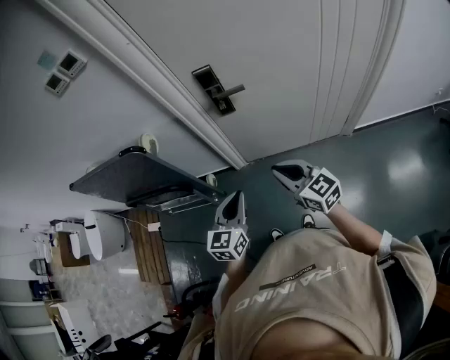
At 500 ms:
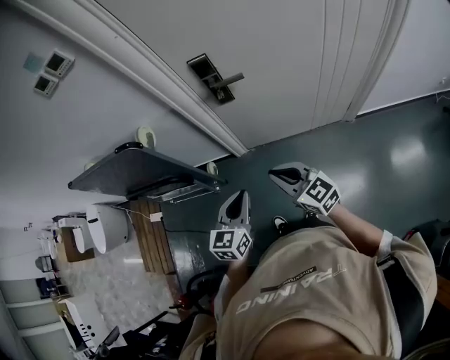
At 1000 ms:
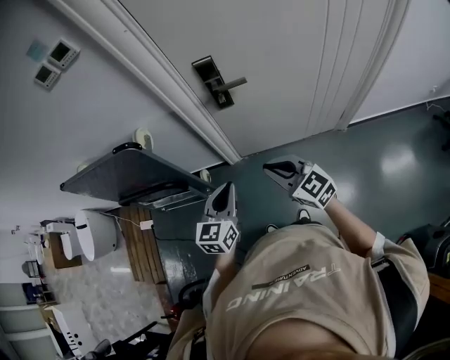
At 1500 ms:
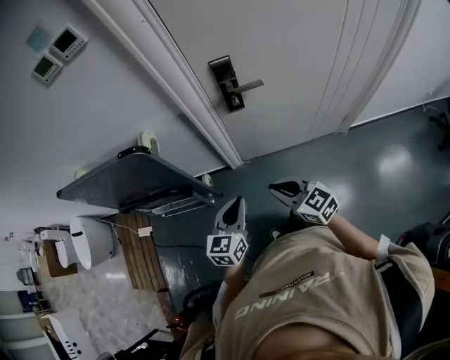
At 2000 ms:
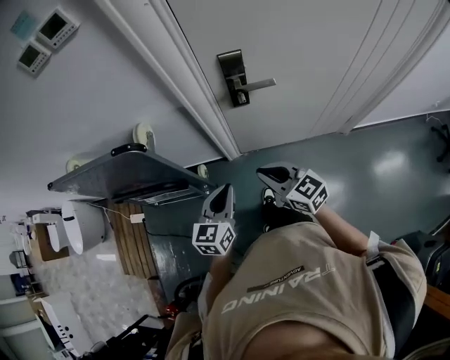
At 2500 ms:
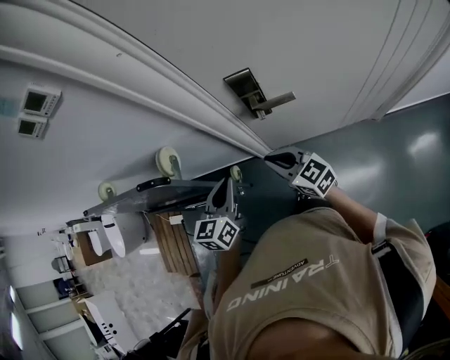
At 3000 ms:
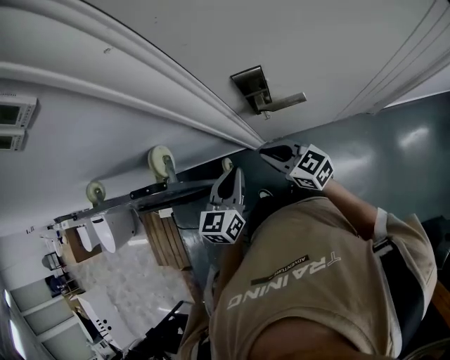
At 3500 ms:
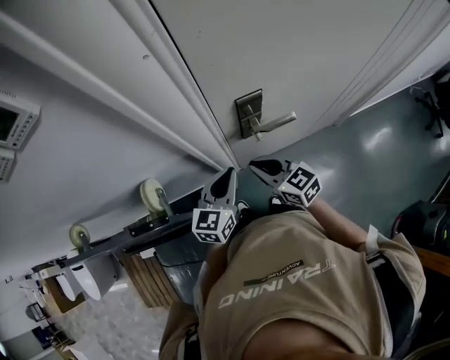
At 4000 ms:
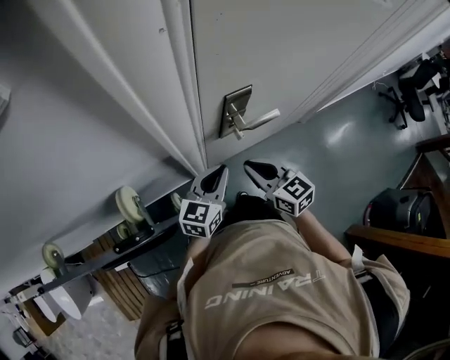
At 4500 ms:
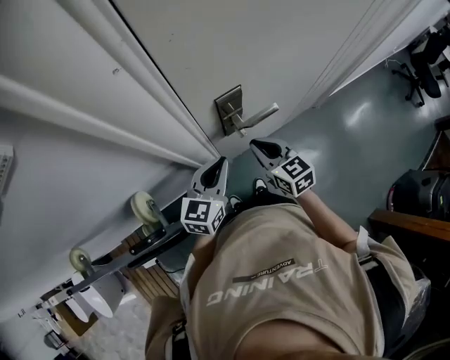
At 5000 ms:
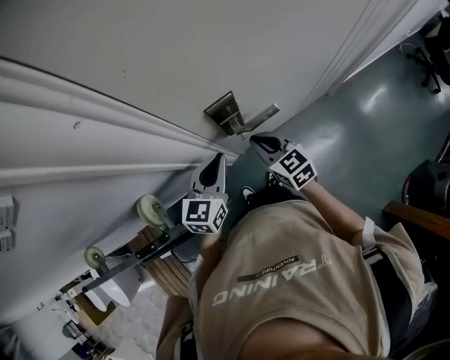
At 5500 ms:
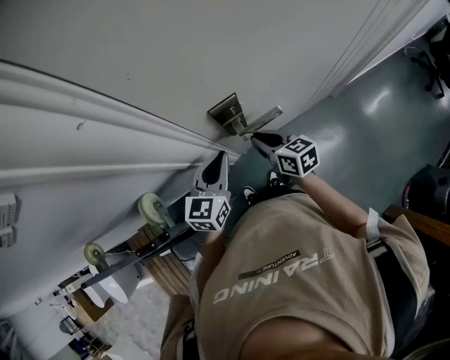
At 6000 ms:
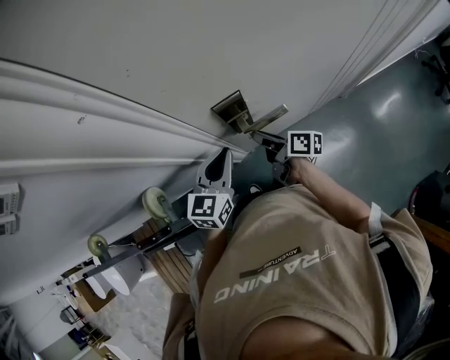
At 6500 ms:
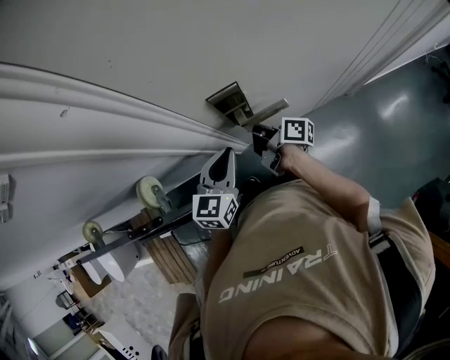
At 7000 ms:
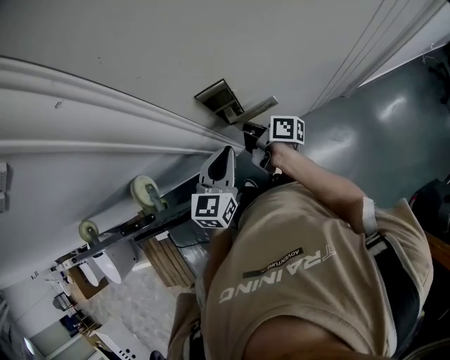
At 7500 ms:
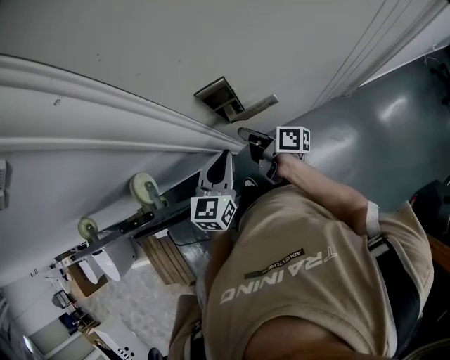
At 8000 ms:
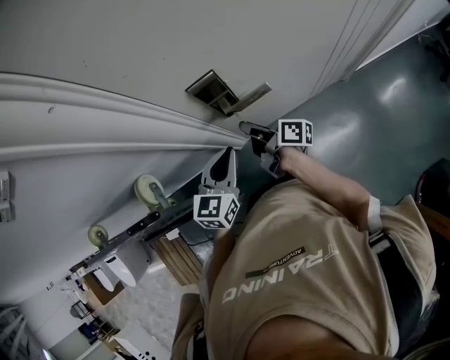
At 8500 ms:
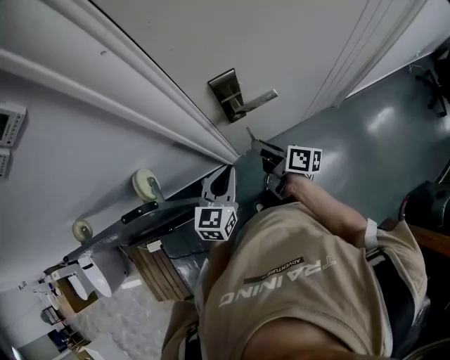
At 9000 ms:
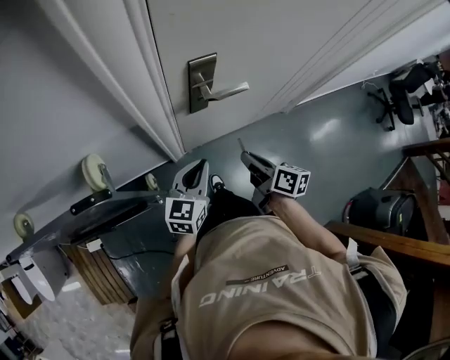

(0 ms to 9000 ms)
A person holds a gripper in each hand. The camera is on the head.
0 ms - 2000 ms: The right gripper is displaced to the left and forward by about 15 cm, while the left gripper goes roughly 15 cm forward and to the left.
2000 ms - 4500 ms: The left gripper goes up and down, some 5 cm each way, reversing 2 times, and turns by roughly 30 degrees, while the right gripper shifts by some 25 cm, and turns by approximately 40 degrees.
4500 ms - 7000 ms: The right gripper goes some 10 cm forward and downward, and rotates around the line of its fingers by some 70 degrees, clockwise from behind.
7000 ms - 9000 ms: The left gripper shifts about 10 cm backward. Meanwhile the right gripper travels backward by roughly 20 cm, and changes its angle by approximately 30 degrees.

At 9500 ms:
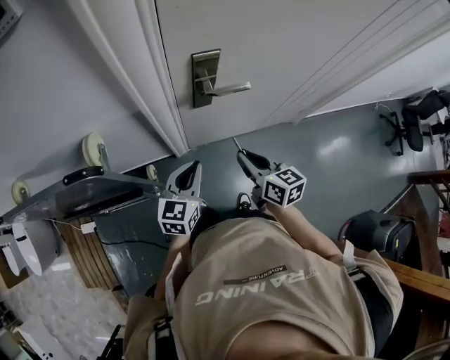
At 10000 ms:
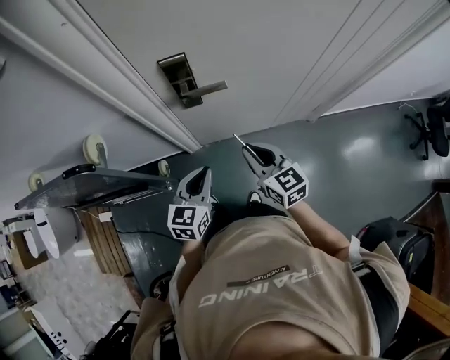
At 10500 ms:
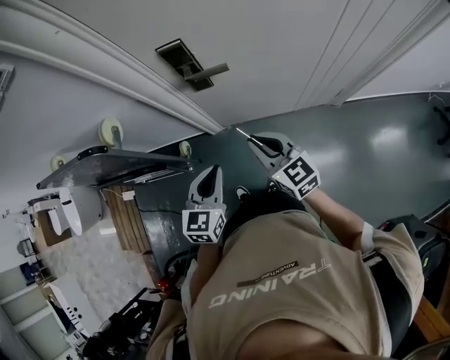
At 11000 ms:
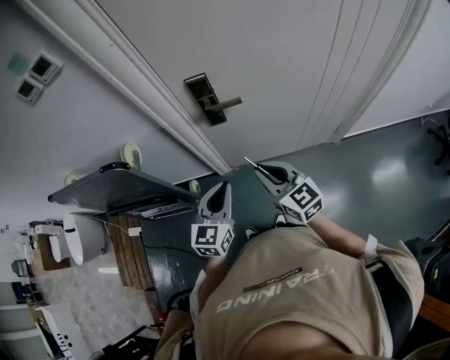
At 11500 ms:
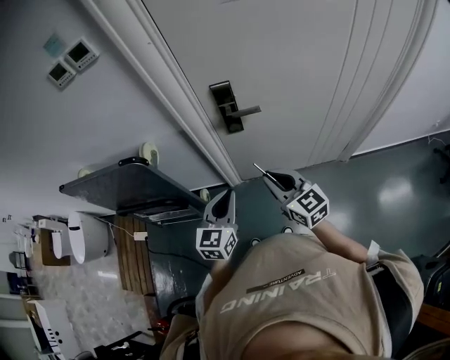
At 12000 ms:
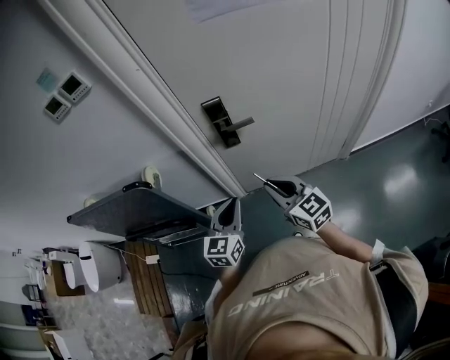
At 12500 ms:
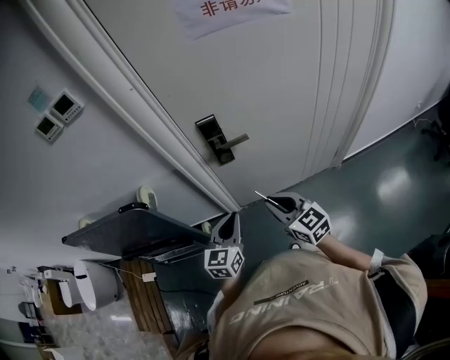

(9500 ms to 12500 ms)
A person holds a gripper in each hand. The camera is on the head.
9500 ms - 11000 ms: The right gripper heads backward, upward and to the right, covering about 15 cm, and rotates about 30 degrees. Meanwhile the left gripper goes some 15 cm backward, to the right and upward.
11000 ms - 12500 ms: The grippers move only a little.

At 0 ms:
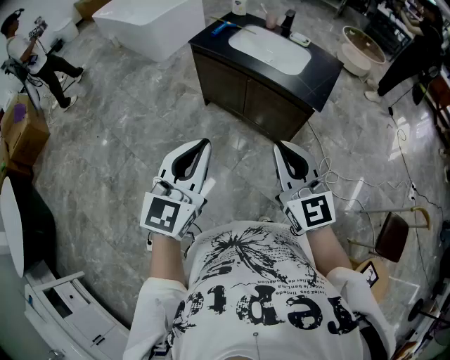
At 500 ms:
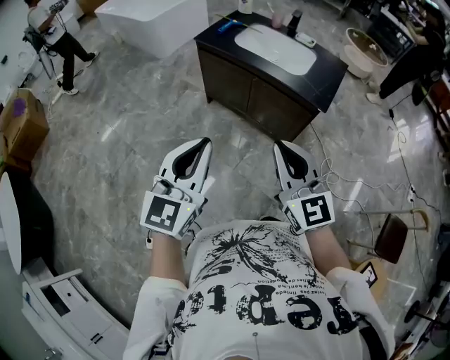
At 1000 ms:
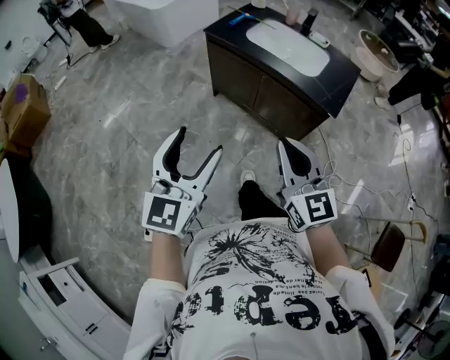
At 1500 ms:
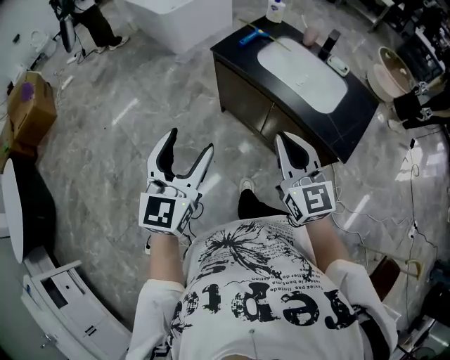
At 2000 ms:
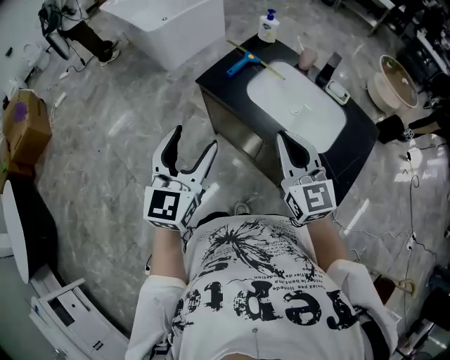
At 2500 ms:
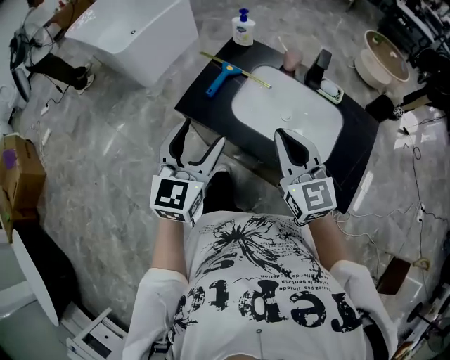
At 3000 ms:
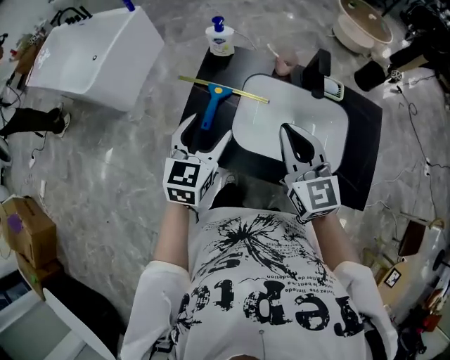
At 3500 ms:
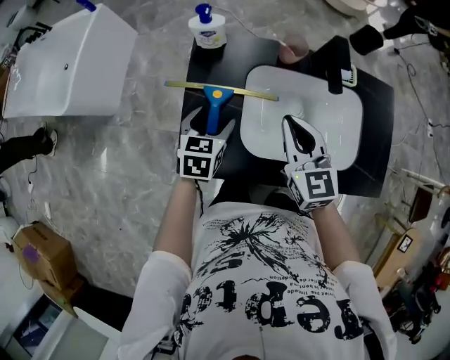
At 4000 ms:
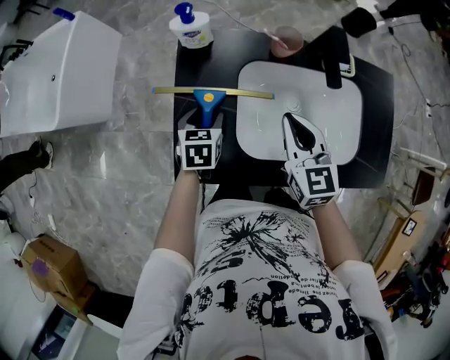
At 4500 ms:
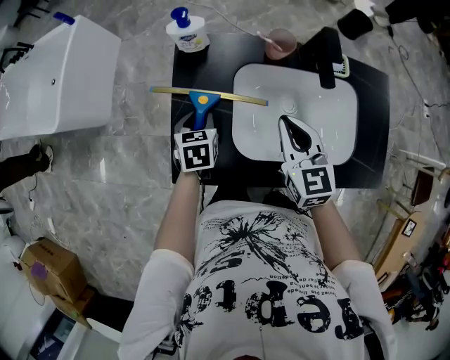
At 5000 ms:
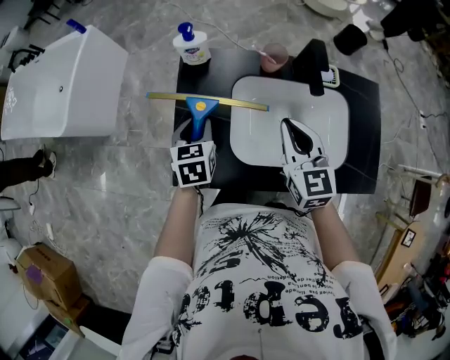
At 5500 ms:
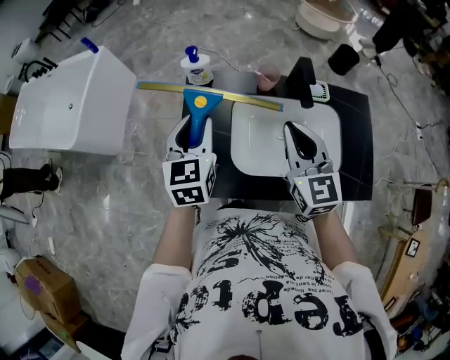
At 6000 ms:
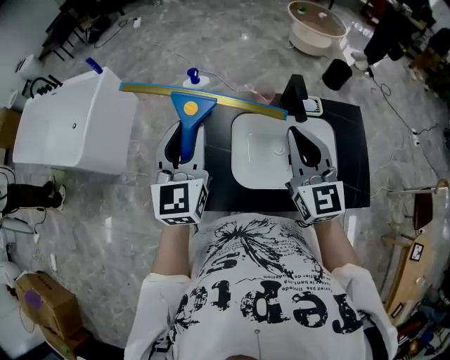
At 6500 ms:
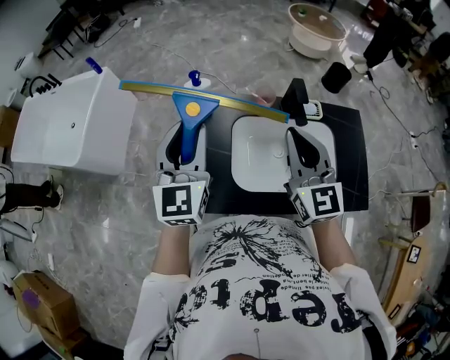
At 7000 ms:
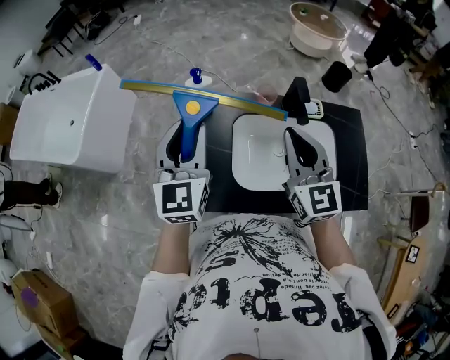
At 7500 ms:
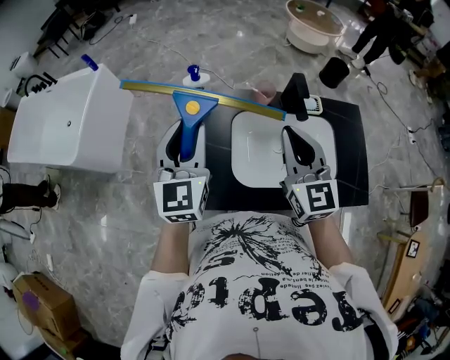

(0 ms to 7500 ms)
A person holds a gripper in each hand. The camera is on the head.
0 ms - 2000 ms: The two grippers travel together, forward, roughly 50 cm. The left gripper opens its fingers.
2000 ms - 4000 ms: The two grippers travel together, roughly 50 cm. The right gripper changes its angle by about 50 degrees, while the left gripper angles its fingers downward, by about 50 degrees.
4000 ms - 5500 ms: The left gripper moves upward, roughly 25 cm, and angles its fingers upward, by some 30 degrees, while the right gripper goes approximately 15 cm upward.
5500 ms - 7500 ms: The right gripper shifts by roughly 5 cm, while the left gripper is displaced upward by approximately 10 cm.

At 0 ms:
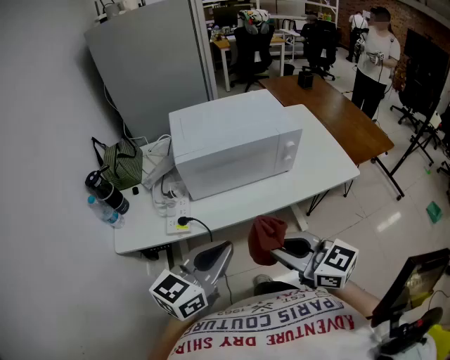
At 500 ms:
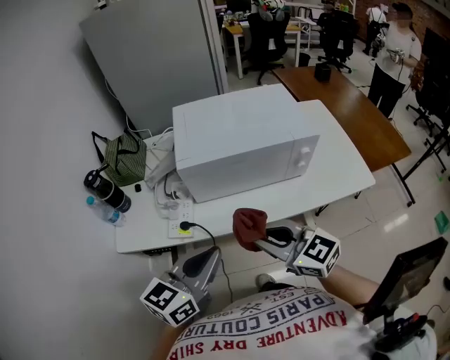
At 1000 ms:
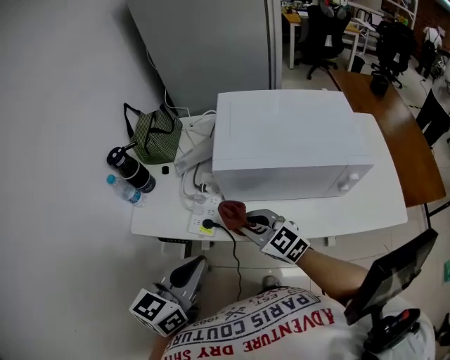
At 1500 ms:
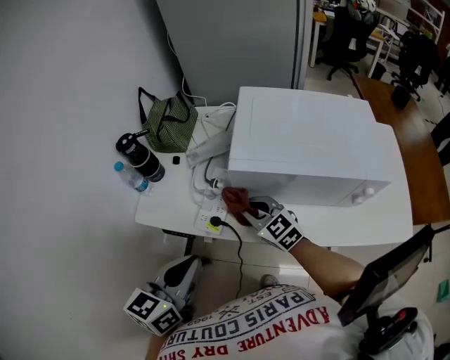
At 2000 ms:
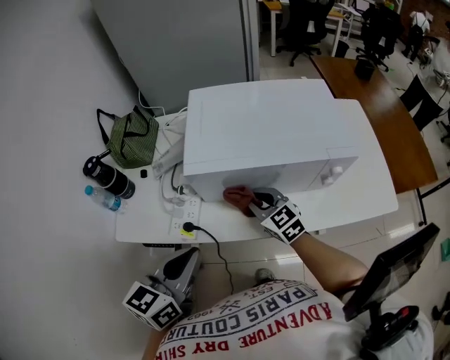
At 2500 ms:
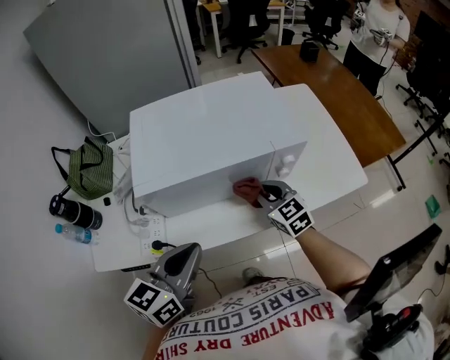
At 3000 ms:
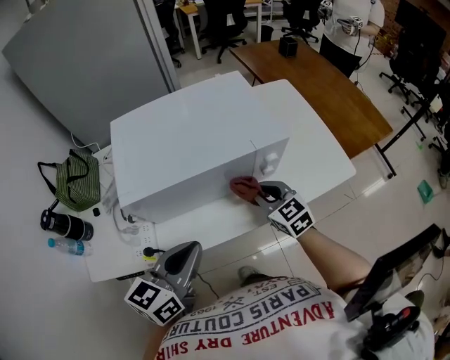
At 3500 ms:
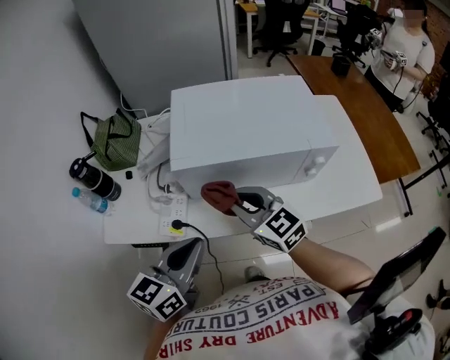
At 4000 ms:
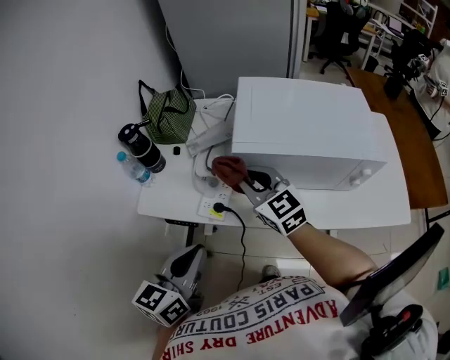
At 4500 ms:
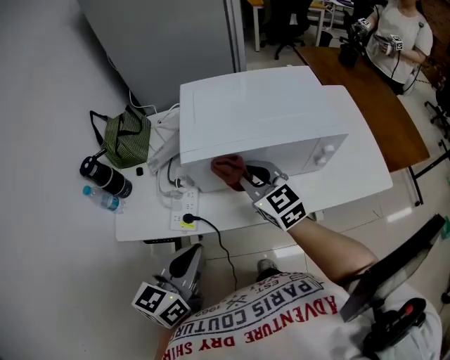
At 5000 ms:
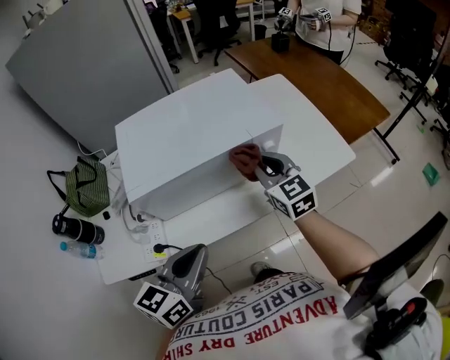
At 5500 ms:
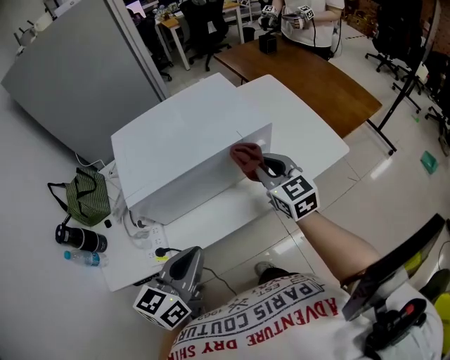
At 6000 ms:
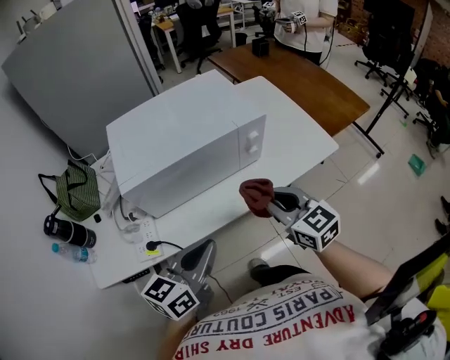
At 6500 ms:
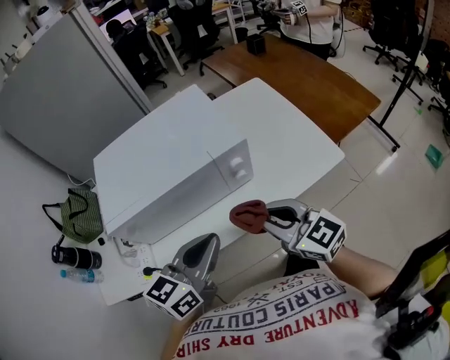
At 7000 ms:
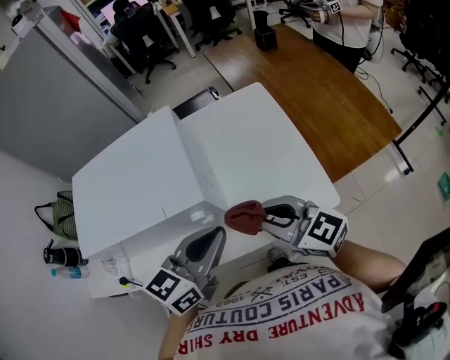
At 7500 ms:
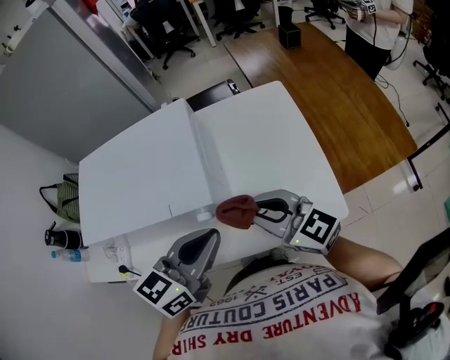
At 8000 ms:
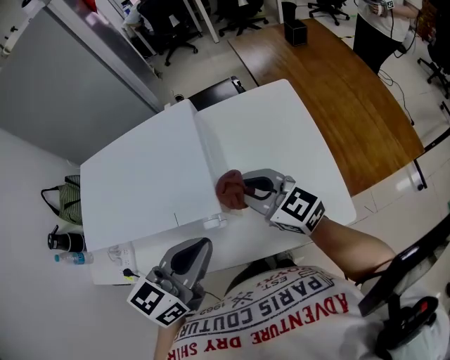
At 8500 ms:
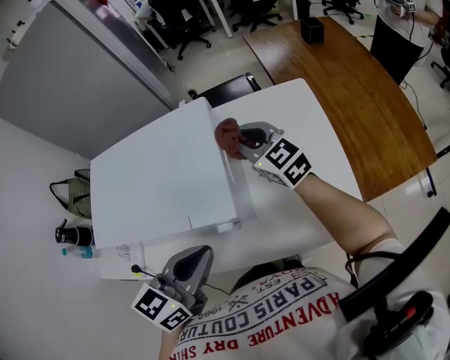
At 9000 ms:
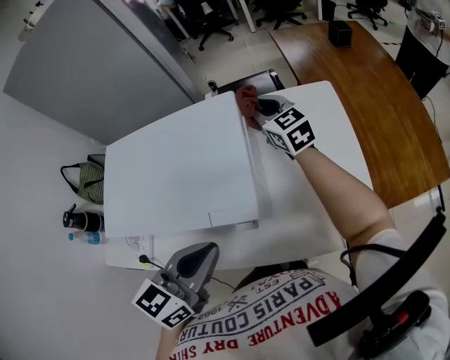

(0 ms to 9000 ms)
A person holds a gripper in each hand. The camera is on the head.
0 ms - 2000 ms: The right gripper ends up approximately 35 cm from where it was, and turns by some 20 degrees, while the left gripper changes place by approximately 15 cm, and turns by roughly 30 degrees.
2000 ms - 4500 ms: The right gripper shifts approximately 10 cm upward.
4500 ms - 7000 ms: The right gripper is displaced to the right by roughly 40 cm. The left gripper travels to the right and forward by roughly 50 cm, and swivels approximately 20 degrees.
7000 ms - 9000 ms: The right gripper is displaced forward by roughly 35 cm. The left gripper moves to the left, roughly 10 cm.
